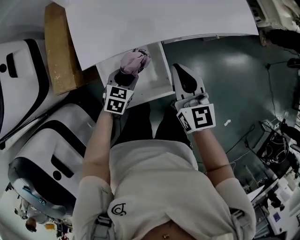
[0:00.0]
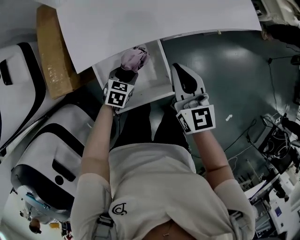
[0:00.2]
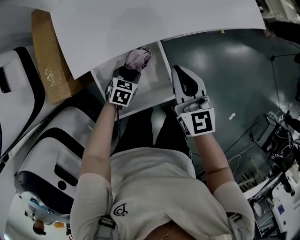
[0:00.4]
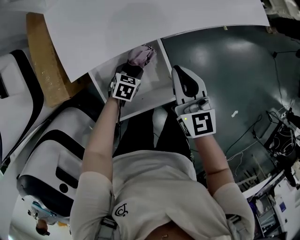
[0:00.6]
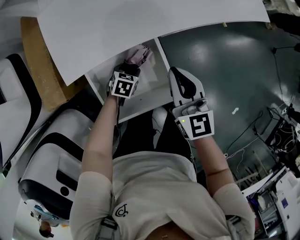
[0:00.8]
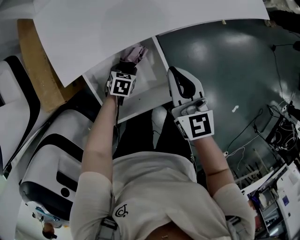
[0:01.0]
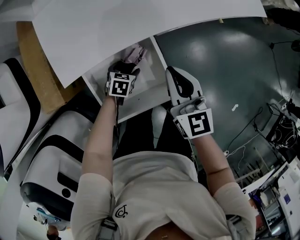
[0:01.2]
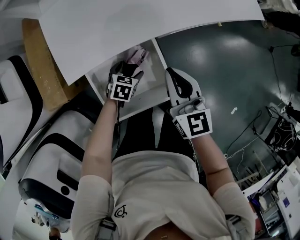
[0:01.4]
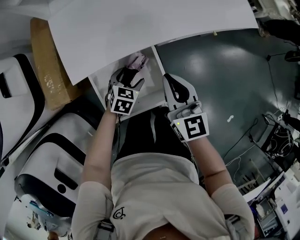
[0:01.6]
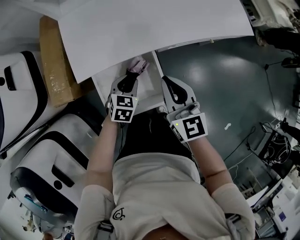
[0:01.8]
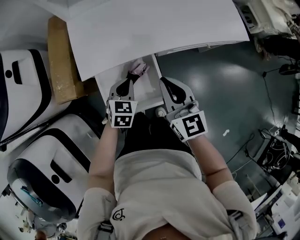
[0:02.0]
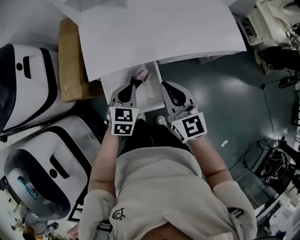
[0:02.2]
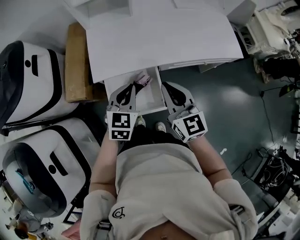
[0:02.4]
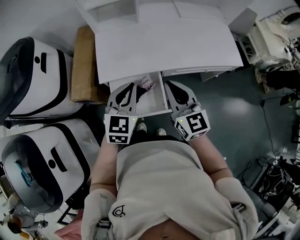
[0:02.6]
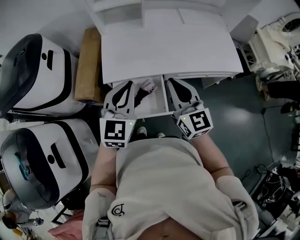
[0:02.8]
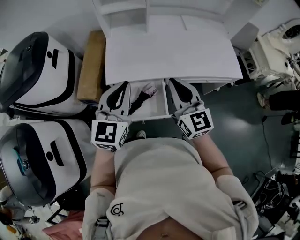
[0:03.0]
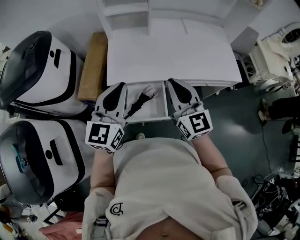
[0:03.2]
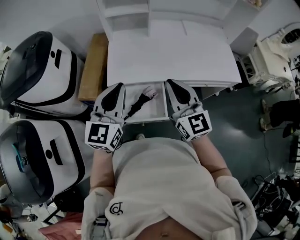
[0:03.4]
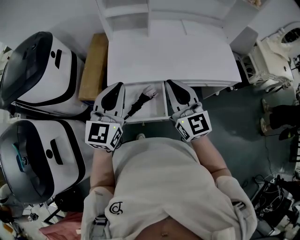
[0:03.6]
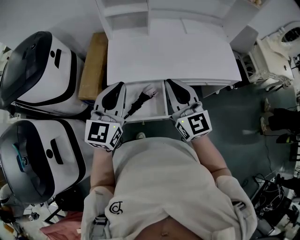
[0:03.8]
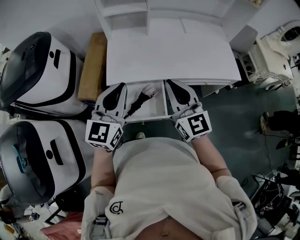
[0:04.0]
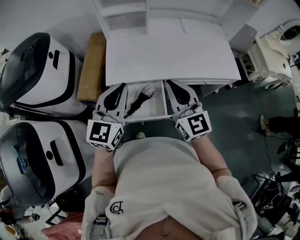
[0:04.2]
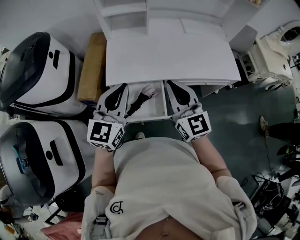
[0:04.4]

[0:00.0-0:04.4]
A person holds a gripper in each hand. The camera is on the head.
0:00.0 to 0:01.4: The left gripper is displaced downward by about 10 cm, and opens its fingers; the right gripper moves downward, roughly 5 cm.
0:01.4 to 0:03.0: The left gripper travels upward by some 50 cm, angles its fingers upward, by some 50 degrees, and closes up. The right gripper heads upward, covering about 20 cm, and turns by roughly 30 degrees.
0:03.0 to 0:04.4: The grippers stay close to where they were, moving slightly.

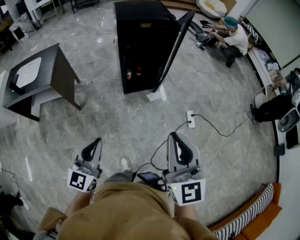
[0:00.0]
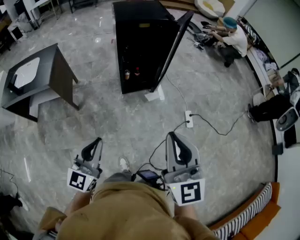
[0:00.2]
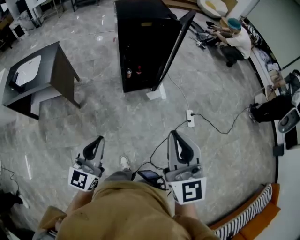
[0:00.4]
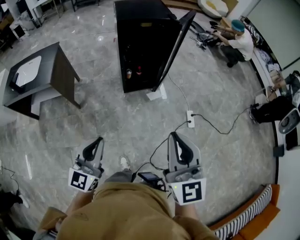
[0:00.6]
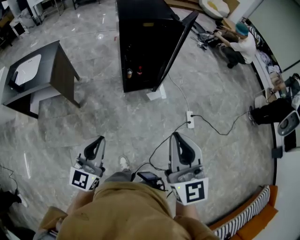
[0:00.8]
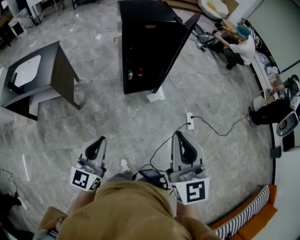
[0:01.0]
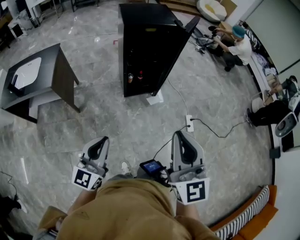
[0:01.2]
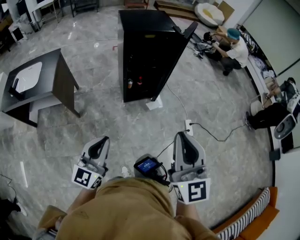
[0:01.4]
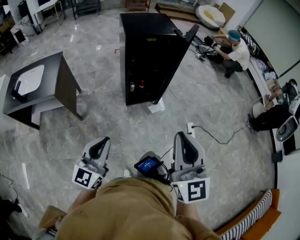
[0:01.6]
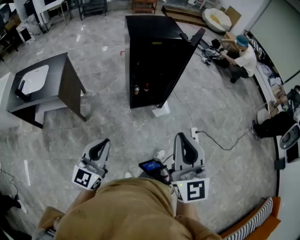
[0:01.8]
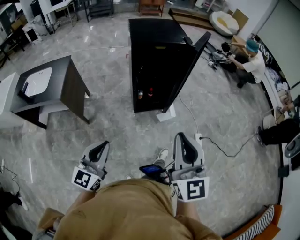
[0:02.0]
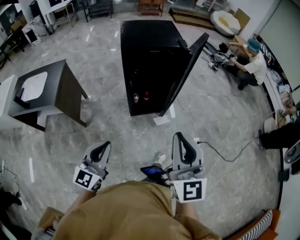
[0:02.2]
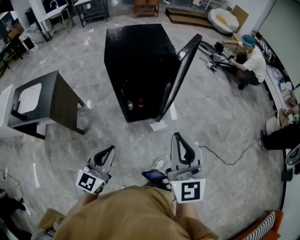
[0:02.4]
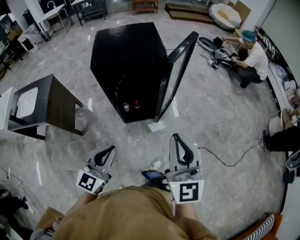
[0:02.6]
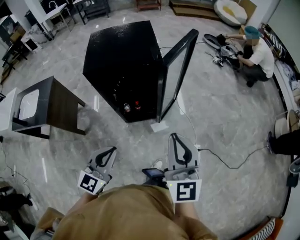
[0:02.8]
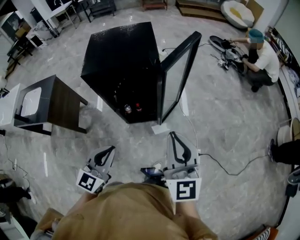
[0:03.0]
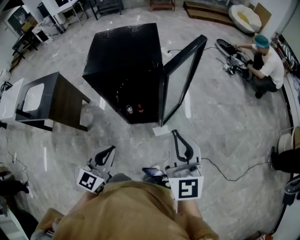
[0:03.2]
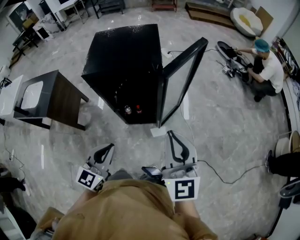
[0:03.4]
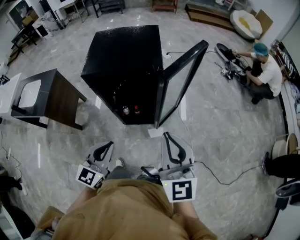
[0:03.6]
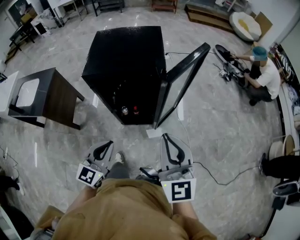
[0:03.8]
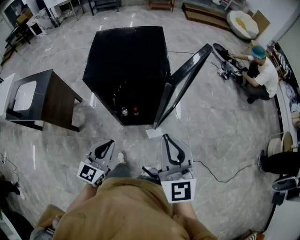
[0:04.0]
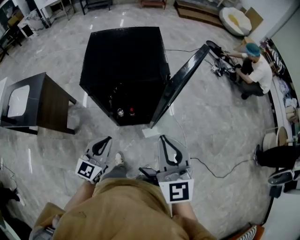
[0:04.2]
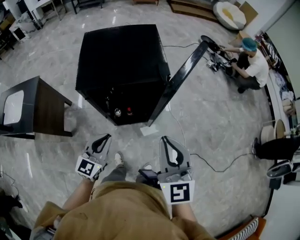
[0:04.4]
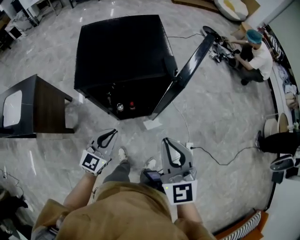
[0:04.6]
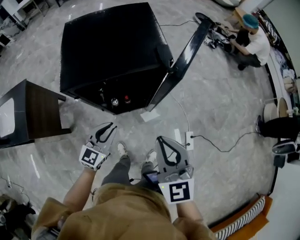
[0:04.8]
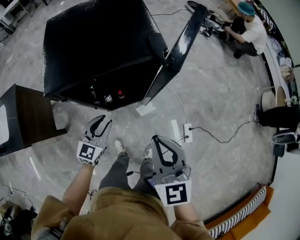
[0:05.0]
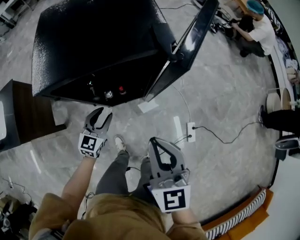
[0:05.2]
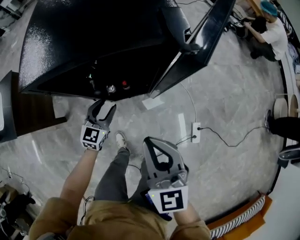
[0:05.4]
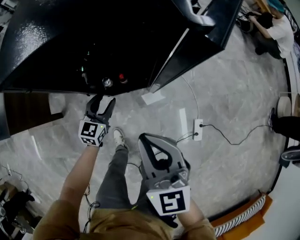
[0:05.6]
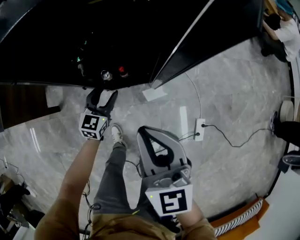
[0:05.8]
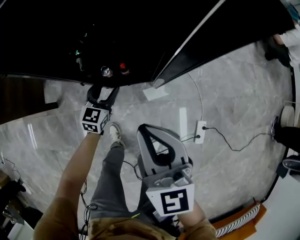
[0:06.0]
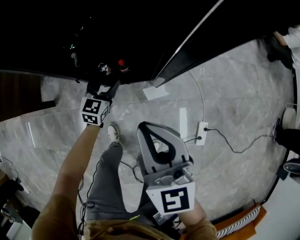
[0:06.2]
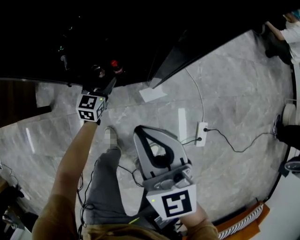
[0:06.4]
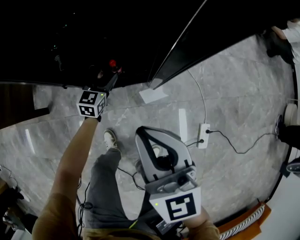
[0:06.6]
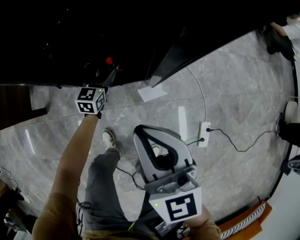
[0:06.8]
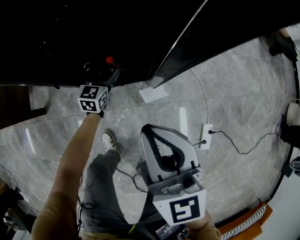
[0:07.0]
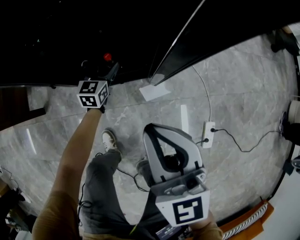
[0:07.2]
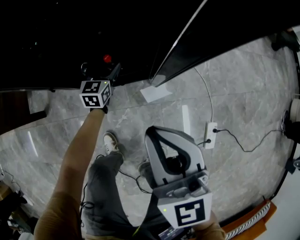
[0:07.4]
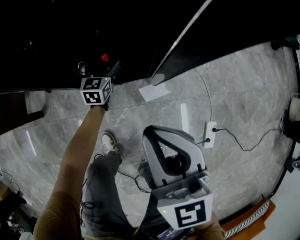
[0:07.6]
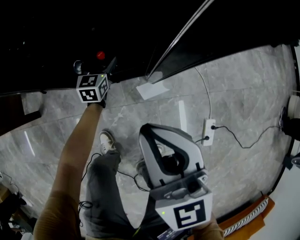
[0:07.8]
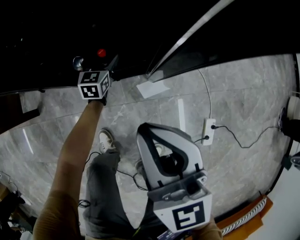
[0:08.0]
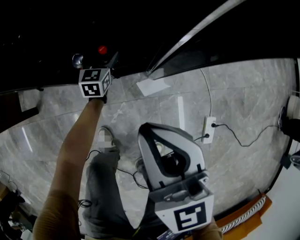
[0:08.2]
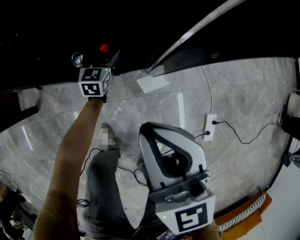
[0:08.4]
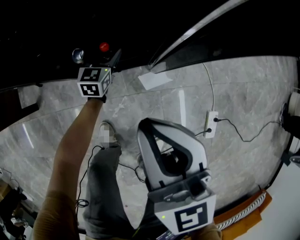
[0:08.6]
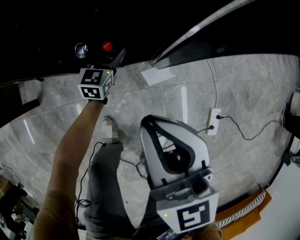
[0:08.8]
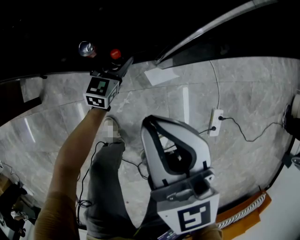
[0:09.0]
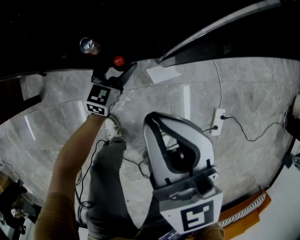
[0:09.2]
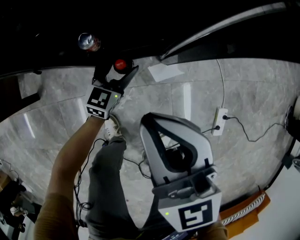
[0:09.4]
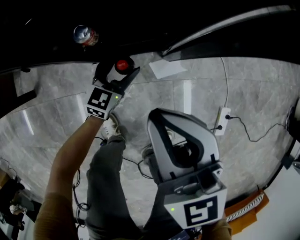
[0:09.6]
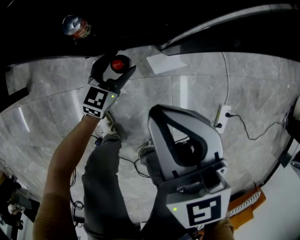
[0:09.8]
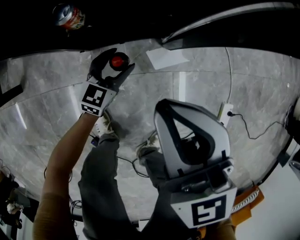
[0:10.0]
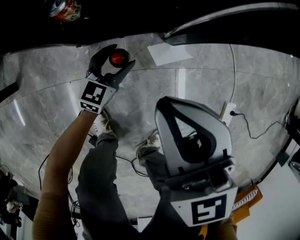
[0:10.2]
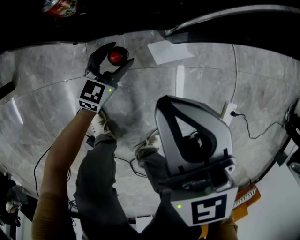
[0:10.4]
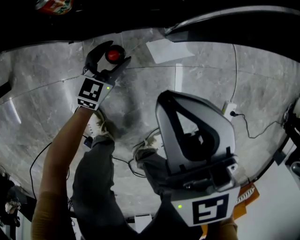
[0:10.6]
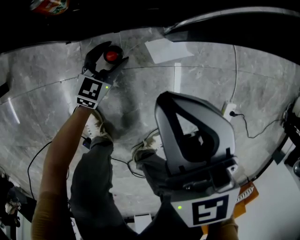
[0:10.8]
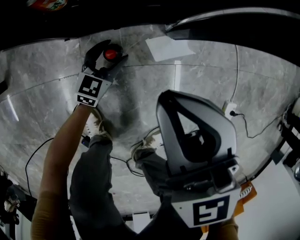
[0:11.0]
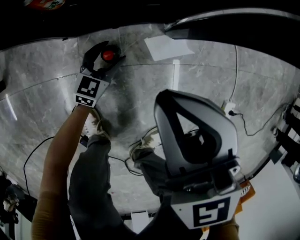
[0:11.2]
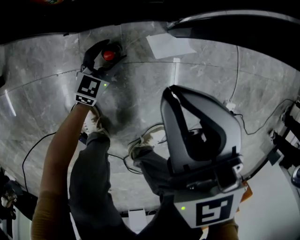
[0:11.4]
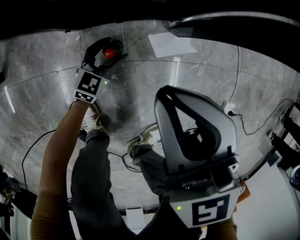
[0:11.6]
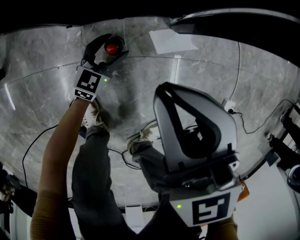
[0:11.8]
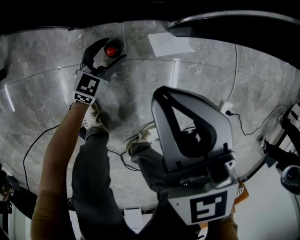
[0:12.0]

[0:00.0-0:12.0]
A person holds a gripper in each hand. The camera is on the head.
0:00.0 to 0:01.6: The right gripper moves forward and to the left, some 5 cm, while the left gripper heads forward, covering some 5 cm.
0:01.6 to 0:03.0: The two grippers travel together, forward and to the right, some 50 cm.
0:03.0 to 0:04.4: The right gripper moves to the left and forward, some 15 cm. Meanwhile the left gripper travels forward, to the left and downward by approximately 20 cm.
0:04.4 to 0:06.0: The left gripper travels downward and forward by some 50 cm, and opens its fingers; the right gripper travels downward by roughly 35 cm.
0:06.0 to 0:07.6: The left gripper travels downward and forward by roughly 25 cm, while the right gripper shifts about 15 cm downward.
0:07.6 to 0:09.0: The right gripper changes place by roughly 5 cm. Meanwhile the left gripper moves backward, approximately 5 cm.
0:09.0 to 0:10.4: The right gripper shifts approximately 25 cm downward, while the left gripper travels downward and backward by some 25 cm.
0:10.4 to 0:12.0: The left gripper heads downward, covering roughly 5 cm.

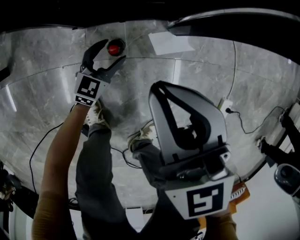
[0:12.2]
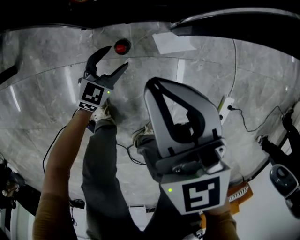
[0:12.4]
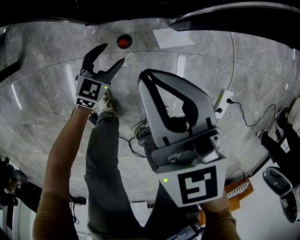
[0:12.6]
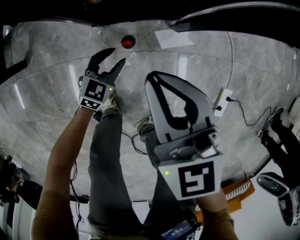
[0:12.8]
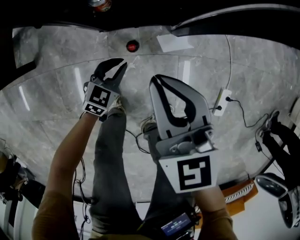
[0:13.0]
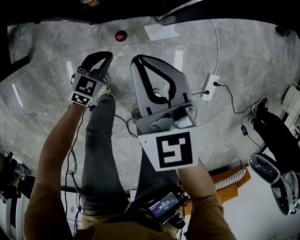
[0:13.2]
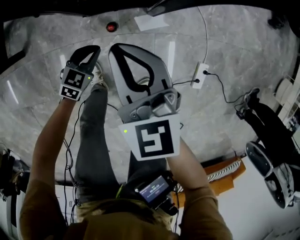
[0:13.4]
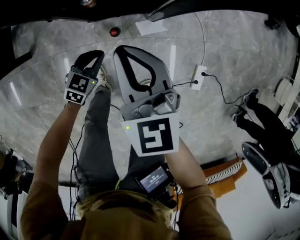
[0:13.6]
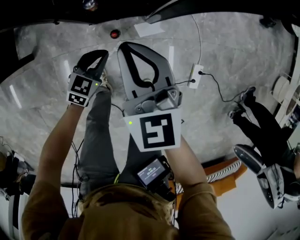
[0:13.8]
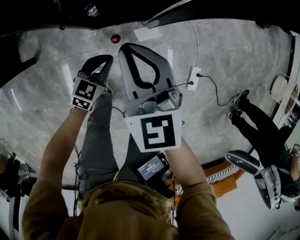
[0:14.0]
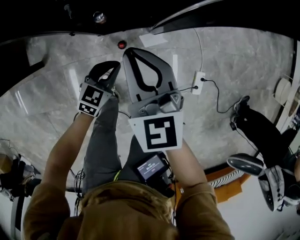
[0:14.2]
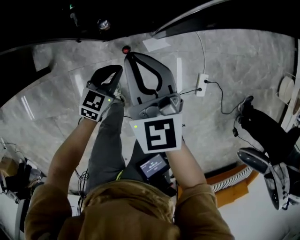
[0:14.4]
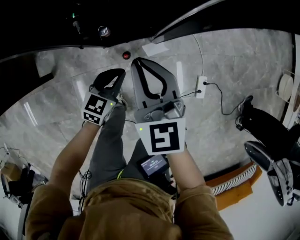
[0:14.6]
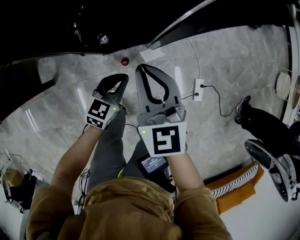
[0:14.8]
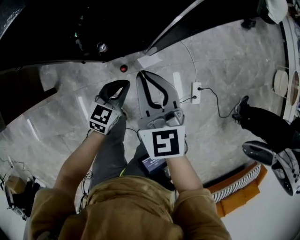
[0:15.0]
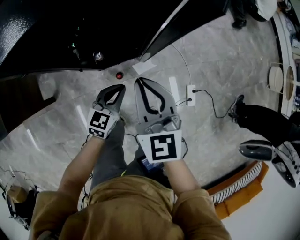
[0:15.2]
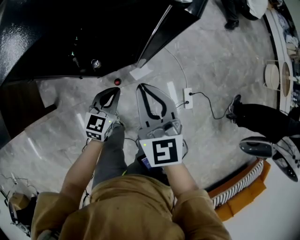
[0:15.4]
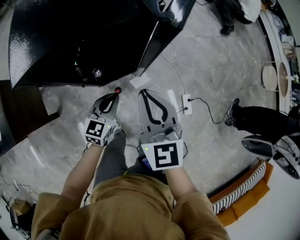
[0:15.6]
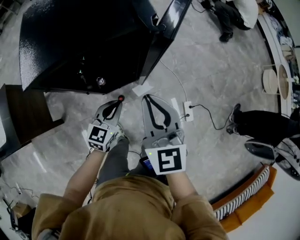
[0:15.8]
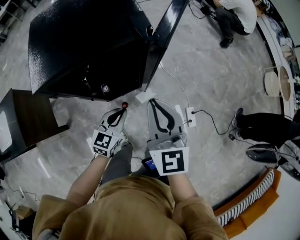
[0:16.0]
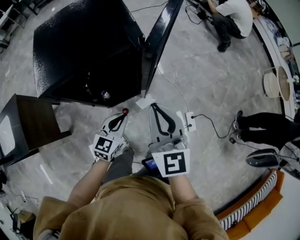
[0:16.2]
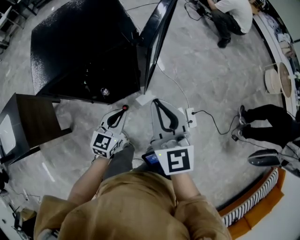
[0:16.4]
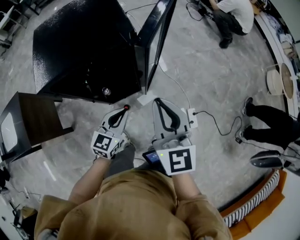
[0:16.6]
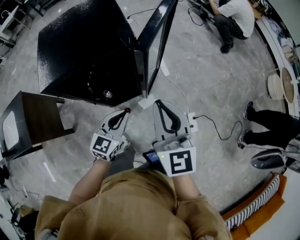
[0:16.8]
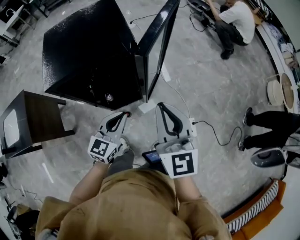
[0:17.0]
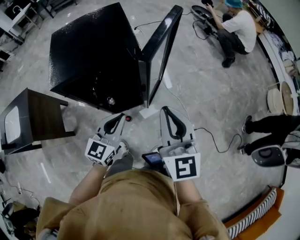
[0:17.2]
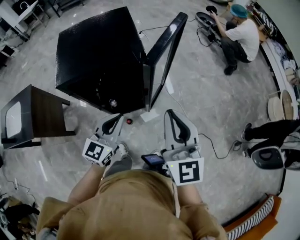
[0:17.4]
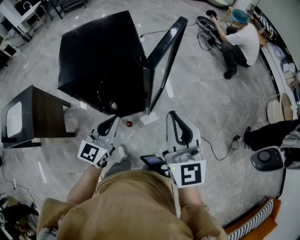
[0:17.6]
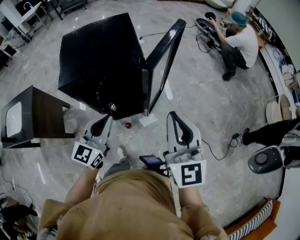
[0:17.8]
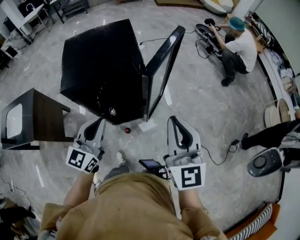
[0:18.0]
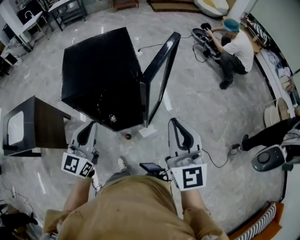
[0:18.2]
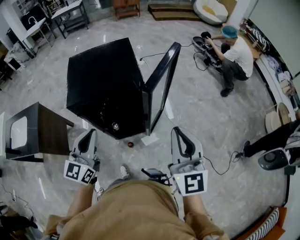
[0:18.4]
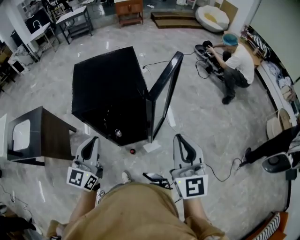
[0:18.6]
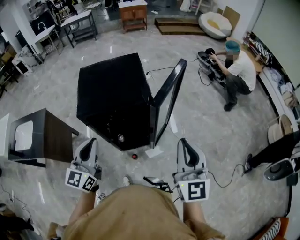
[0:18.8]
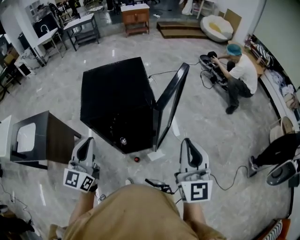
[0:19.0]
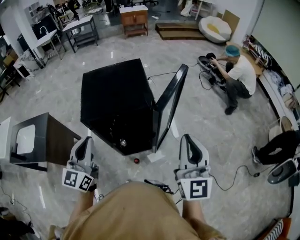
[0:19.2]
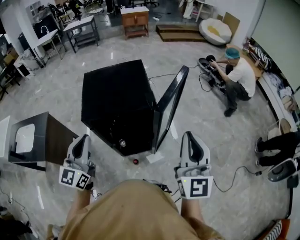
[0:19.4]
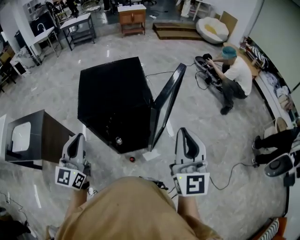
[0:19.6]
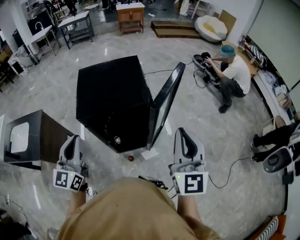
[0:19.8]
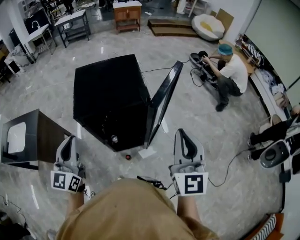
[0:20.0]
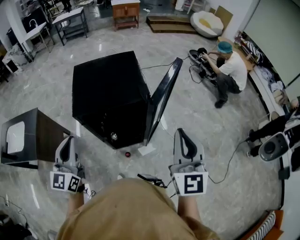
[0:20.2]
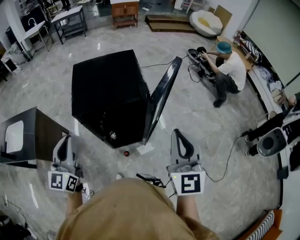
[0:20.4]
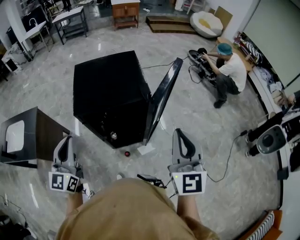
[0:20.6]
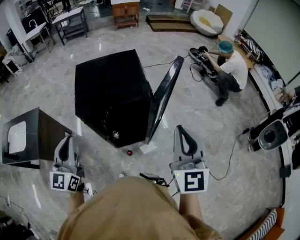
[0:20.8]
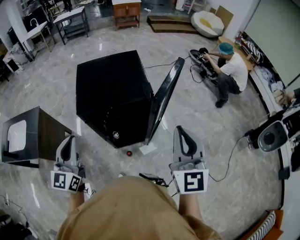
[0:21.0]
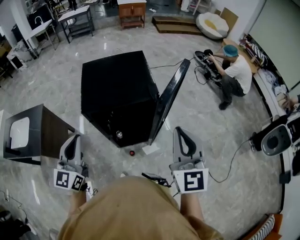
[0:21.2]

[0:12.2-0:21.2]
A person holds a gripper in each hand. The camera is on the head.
0:12.2 to 0:13.8: Both grippers travel together upward, about 35 cm. The left gripper closes up.
0:13.8 to 0:15.2: The two grippers go approximately 25 cm upward.
0:15.2 to 0:16.6: The left gripper moves upward, some 20 cm. The right gripper shifts roughly 25 cm upward and to the right, and rotates approximately 20 degrees.
0:16.6 to 0:18.2: The left gripper moves upward, about 25 cm, and swivels approximately 30 degrees. The right gripper goes some 15 cm upward and to the right.
0:18.2 to 0:19.8: The right gripper travels upward by some 5 cm; the left gripper moves to the left and upward, roughly 15 cm.
0:19.8 to 0:21.2: There are only small adjustments of the grippers.
